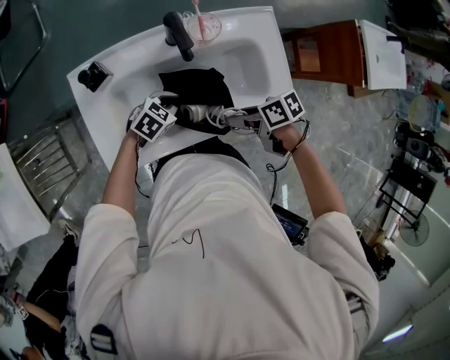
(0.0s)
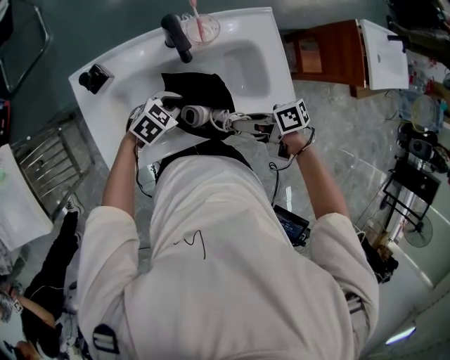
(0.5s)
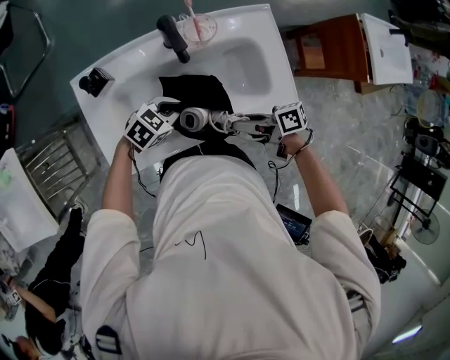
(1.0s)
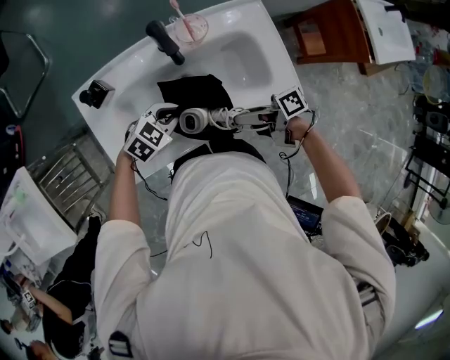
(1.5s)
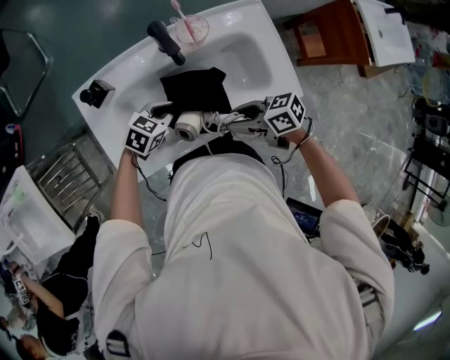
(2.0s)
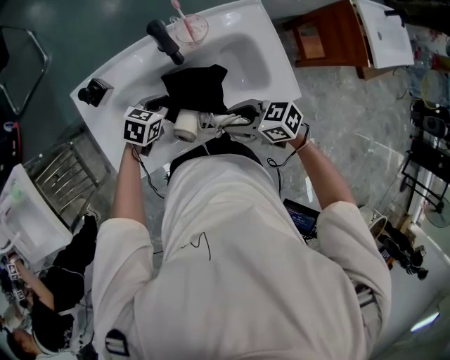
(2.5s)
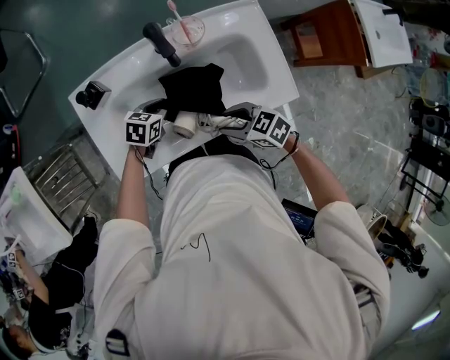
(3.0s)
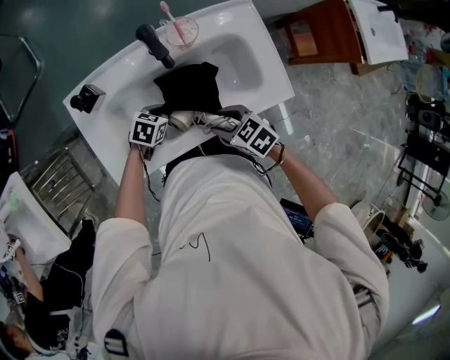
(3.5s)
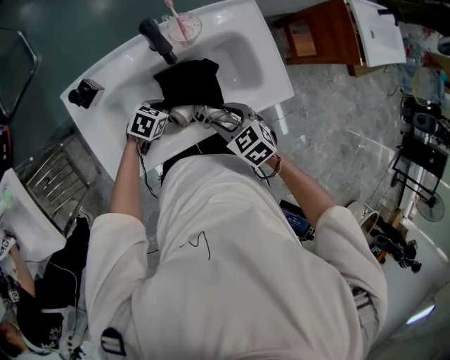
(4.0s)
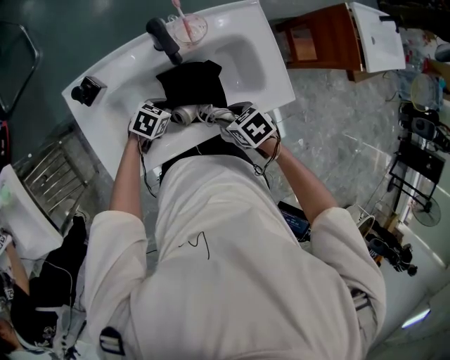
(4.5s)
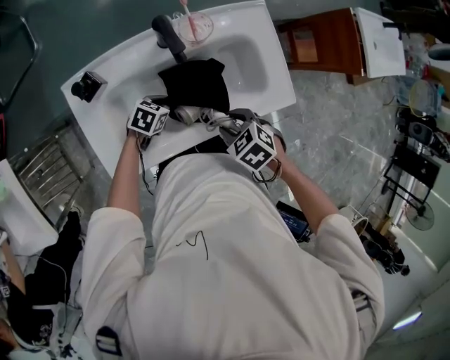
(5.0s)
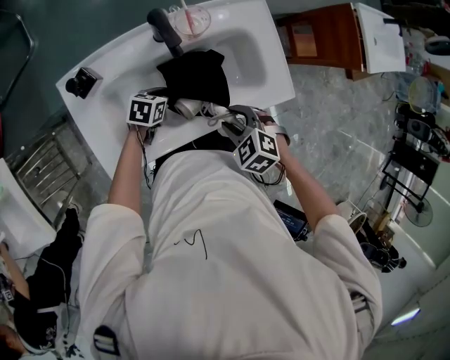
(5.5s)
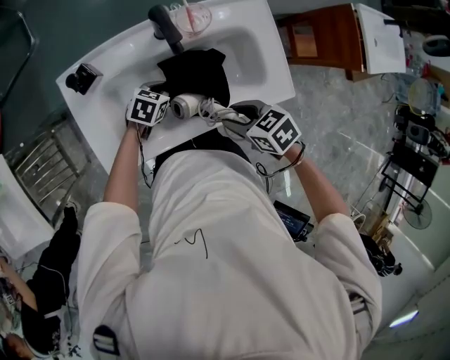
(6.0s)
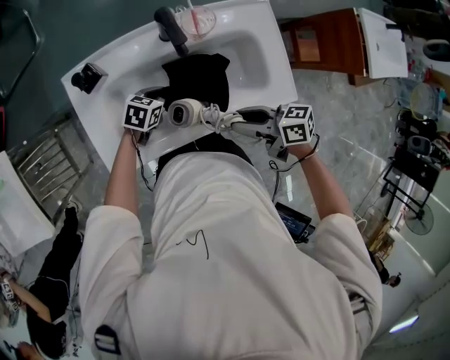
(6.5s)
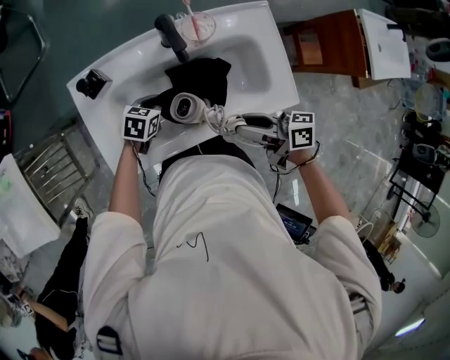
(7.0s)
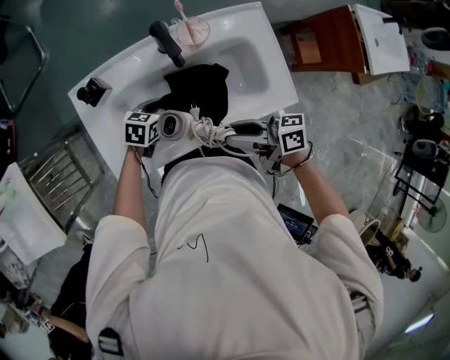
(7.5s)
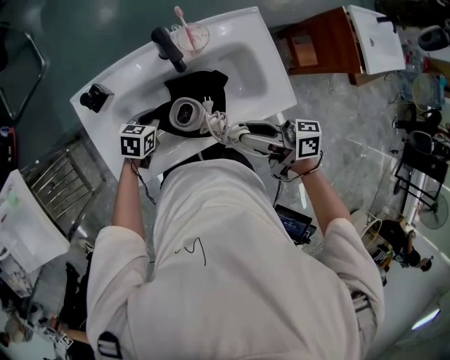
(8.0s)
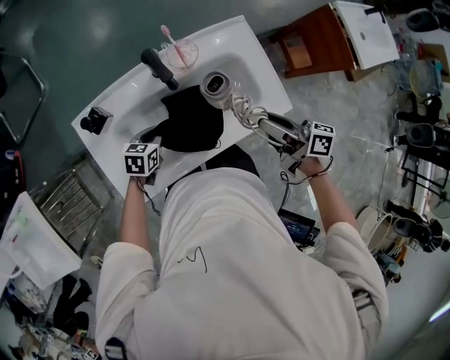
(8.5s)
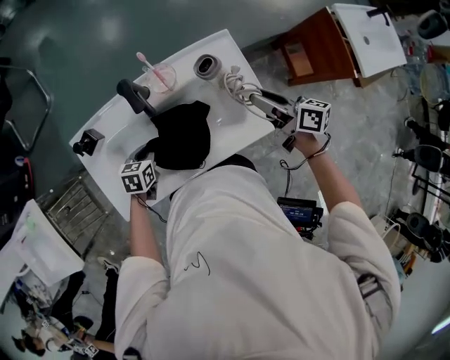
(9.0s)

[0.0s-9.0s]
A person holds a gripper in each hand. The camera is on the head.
0.0s to 2.0s: The right gripper swivels approximately 30 degrees.
2.0s to 4.5s: The two grippers go approximately 5 cm downward. The right gripper tips its fingers downward by approximately 40 degrees.
4.5s to 7.0s: The right gripper travels upward by about 10 cm, and tips its fingers upward by about 60 degrees, while the left gripper moves about 5 cm.
7.0s to 9.0s: The right gripper moves approximately 25 cm, and changes its angle by roughly 30 degrees.

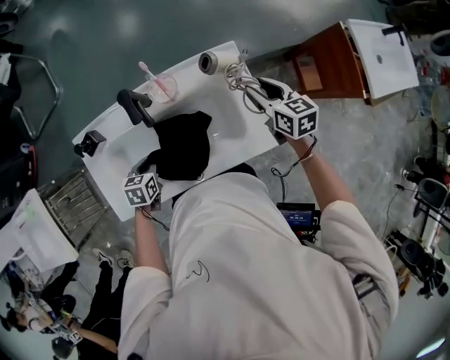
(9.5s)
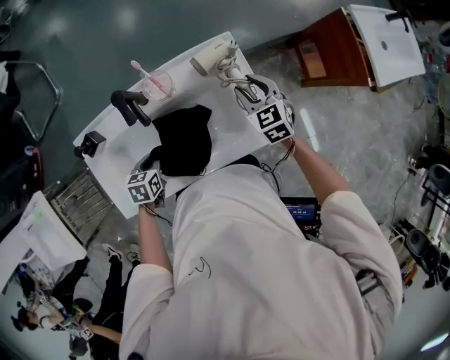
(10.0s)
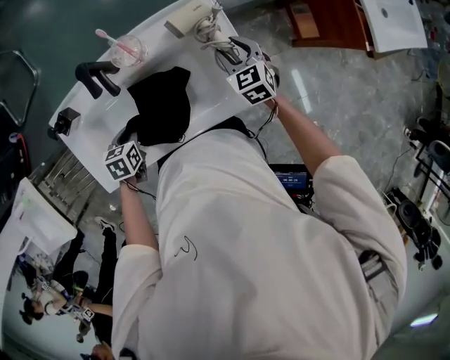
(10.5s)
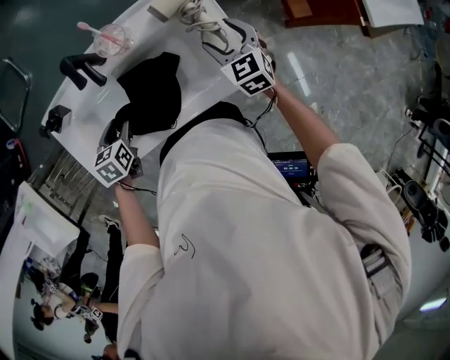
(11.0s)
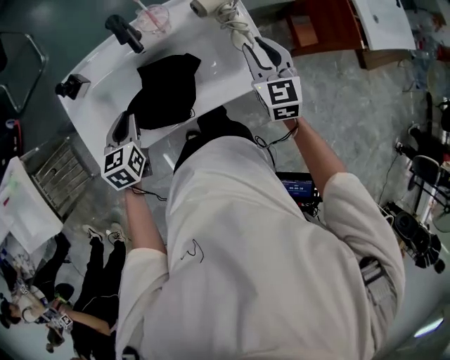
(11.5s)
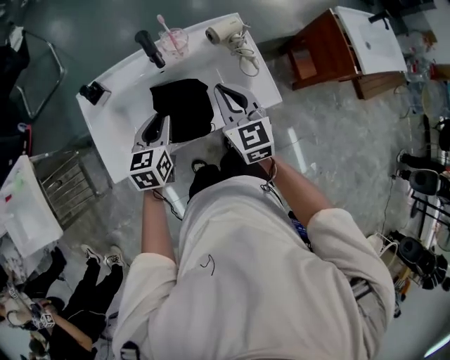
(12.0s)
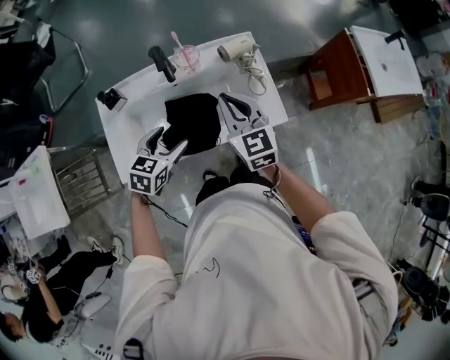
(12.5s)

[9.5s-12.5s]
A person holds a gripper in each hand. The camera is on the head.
9.5s to 11.0s: The left gripper opens its fingers, while the right gripper goes about 5 cm downward, changes its angle by some 30 degrees, and opens.
11.0s to 12.5s: The right gripper shifts about 25 cm upward, to the left and backward, changes its angle by about 20 degrees, and closes up; the left gripper travels upward, backward and to the right by some 15 cm, rotates about 30 degrees, and closes, then reopens.

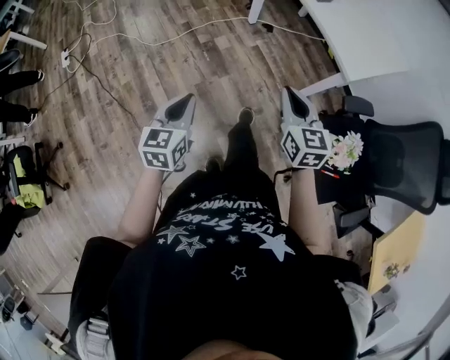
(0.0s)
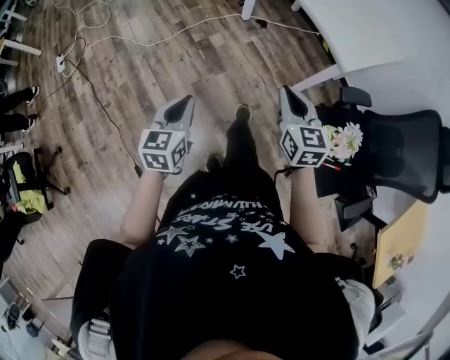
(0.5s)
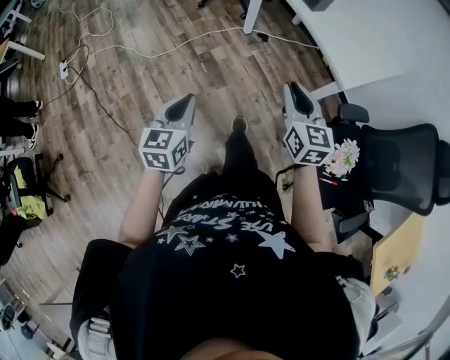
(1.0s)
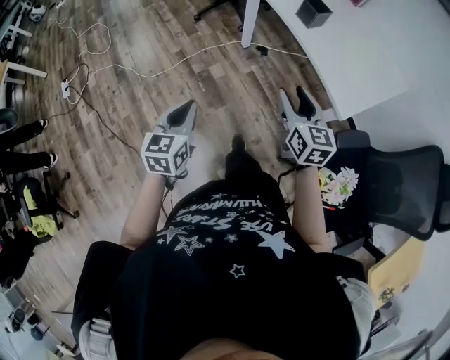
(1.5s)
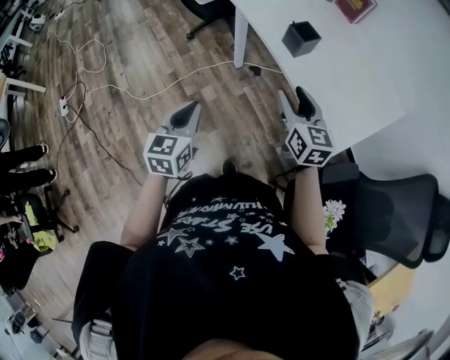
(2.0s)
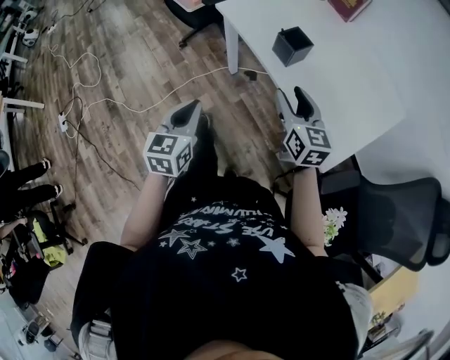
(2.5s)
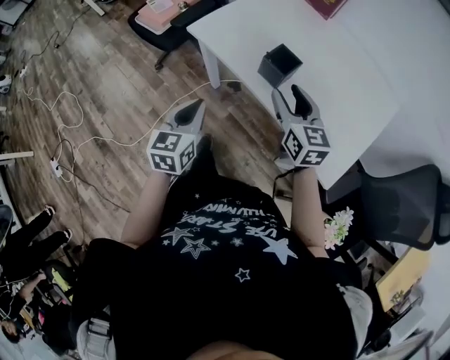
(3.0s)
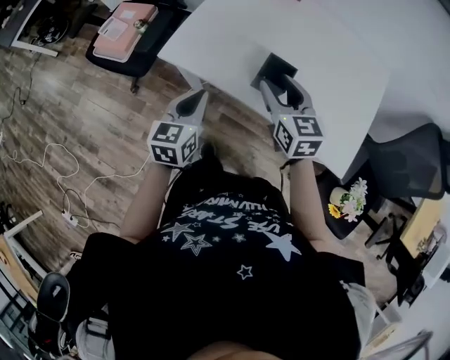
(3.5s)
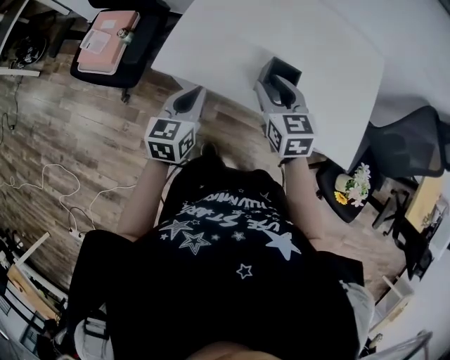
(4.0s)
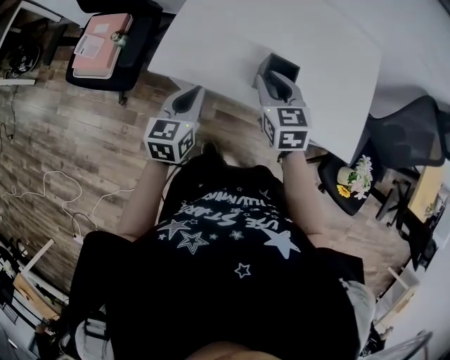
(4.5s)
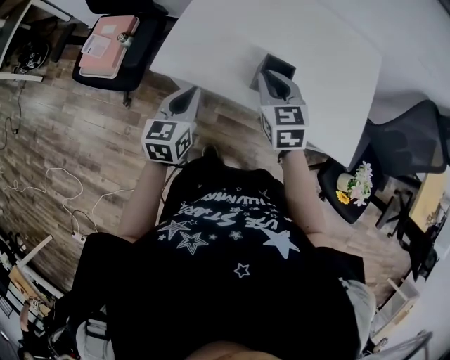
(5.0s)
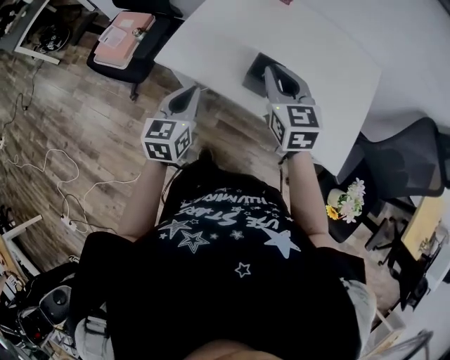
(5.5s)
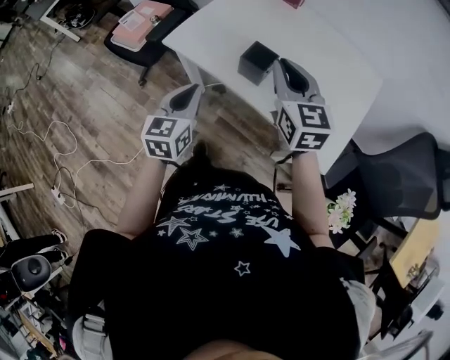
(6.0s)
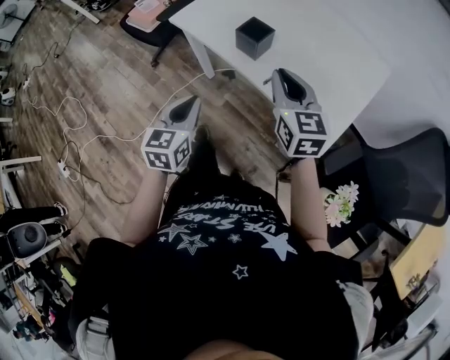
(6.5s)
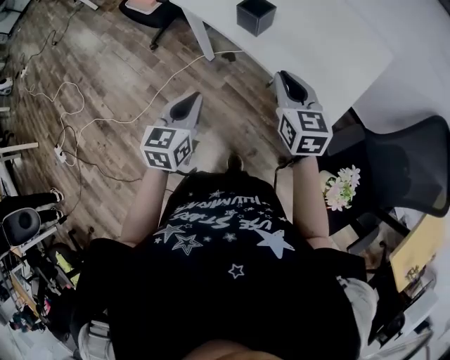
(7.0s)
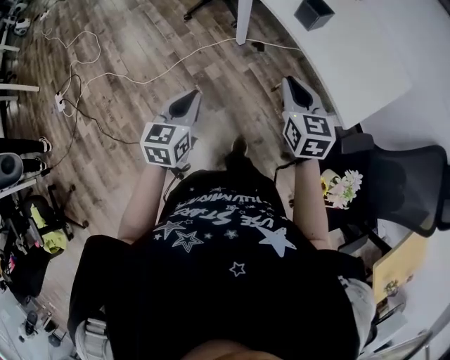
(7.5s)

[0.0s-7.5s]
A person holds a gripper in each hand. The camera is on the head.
0.0s to 2.0s: Both grippers move forward, roughly 35 cm. The right gripper opens up.
2.0s to 4.0s: The right gripper changes place by about 30 cm, and changes its angle by about 40 degrees. Meanwhile the left gripper changes place by about 40 cm, and changes its angle by approximately 40 degrees.
4.0s to 5.5s: The right gripper heads upward, covering approximately 10 cm, and closes up. Meanwhile the left gripper changes place by roughly 5 cm.
5.5s to 7.5s: The right gripper moves some 35 cm, and turns by some 20 degrees, while the left gripper moves approximately 40 cm, and turns by some 30 degrees.

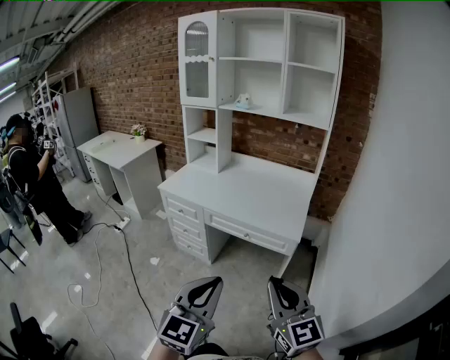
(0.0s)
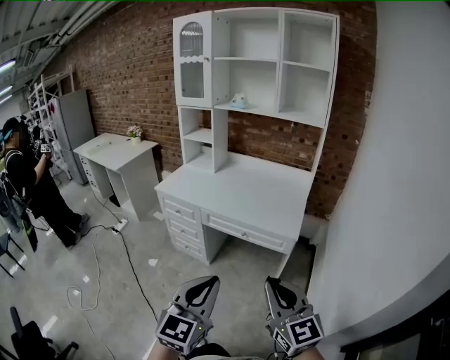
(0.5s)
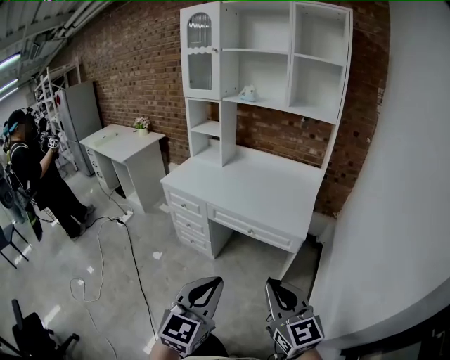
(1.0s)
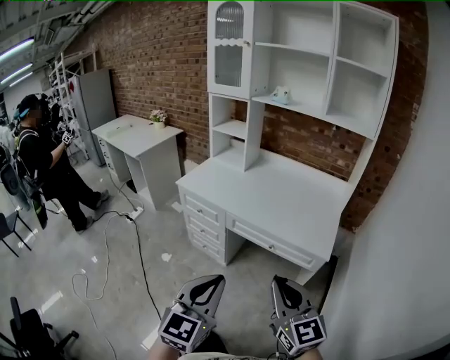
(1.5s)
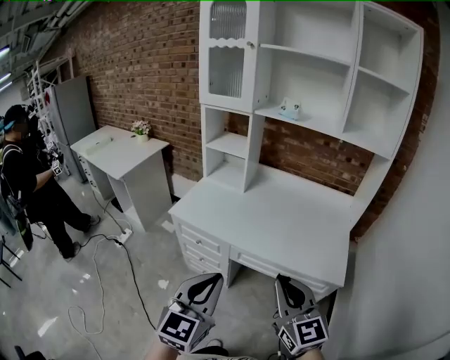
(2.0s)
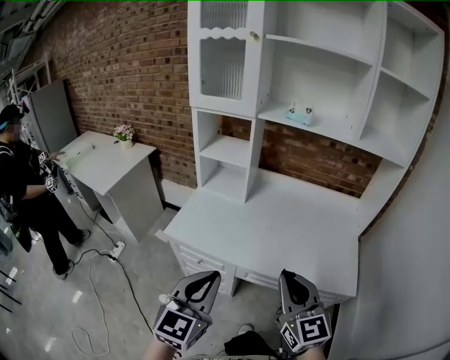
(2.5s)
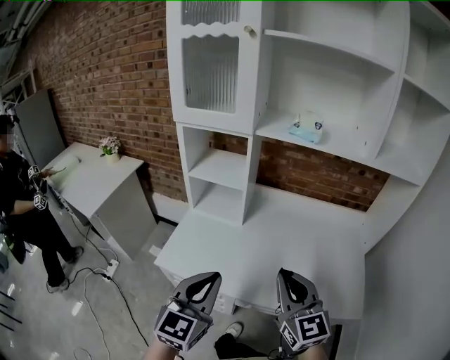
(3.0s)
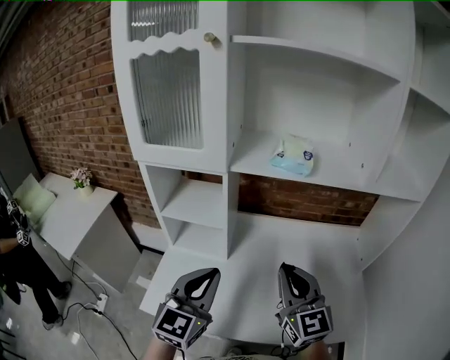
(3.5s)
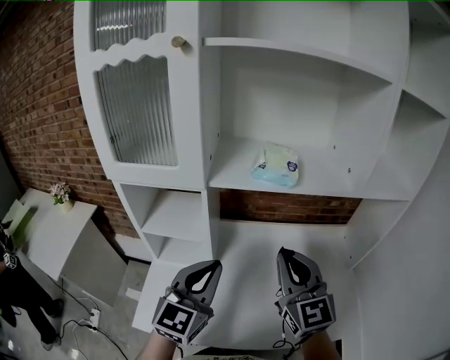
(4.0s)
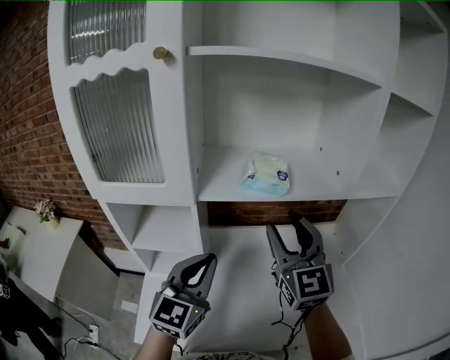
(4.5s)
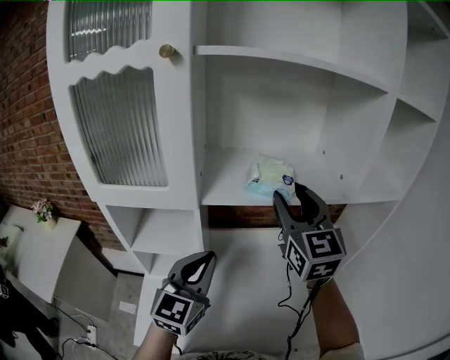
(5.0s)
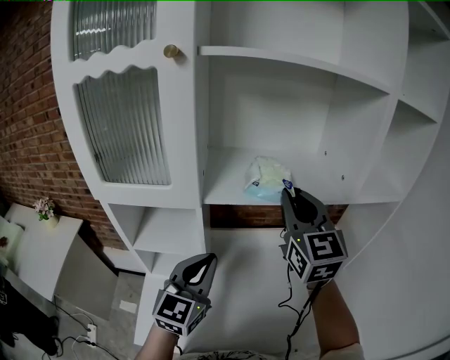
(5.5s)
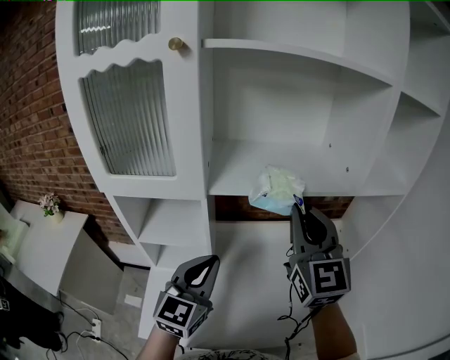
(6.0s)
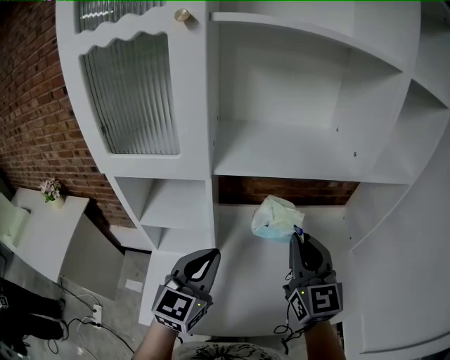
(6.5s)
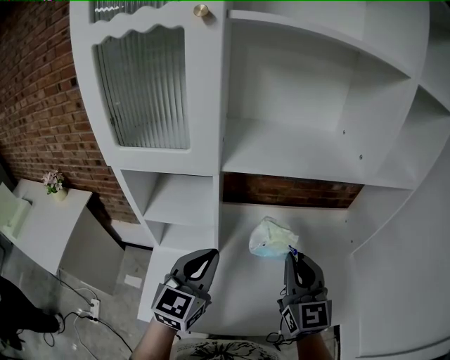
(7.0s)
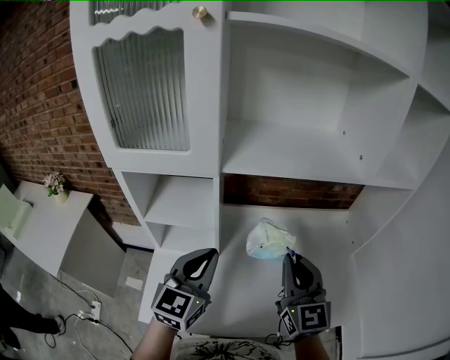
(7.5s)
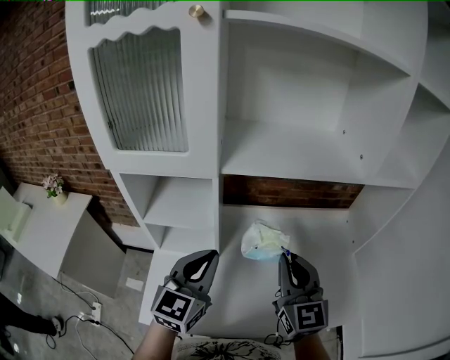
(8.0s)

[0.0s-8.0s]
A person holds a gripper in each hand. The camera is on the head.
0.0s to 2.0s: Both grippers move forward and to the left, some 35 cm.
2.0s to 4.0s: Both grippers are carried forward, roughly 50 cm. The right gripper turns by approximately 20 degrees; the left gripper swivels roughly 20 degrees.
4.0s to 6.0s: The right gripper moves upward and forward, approximately 10 cm, and opens, then closes again.
6.0s to 8.0s: The right gripper shifts approximately 15 cm downward and backward.
